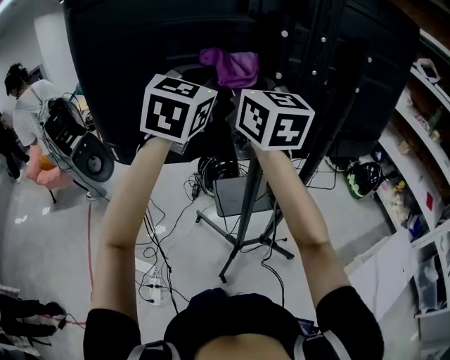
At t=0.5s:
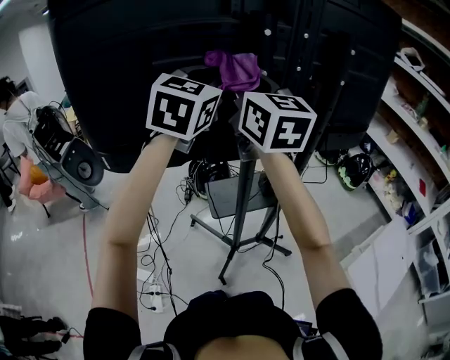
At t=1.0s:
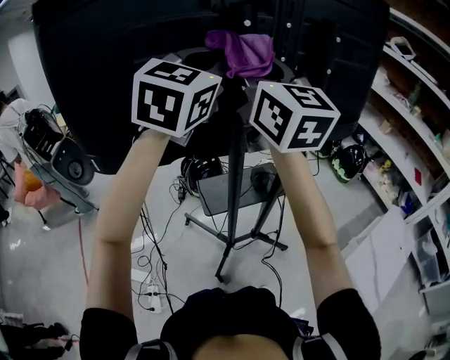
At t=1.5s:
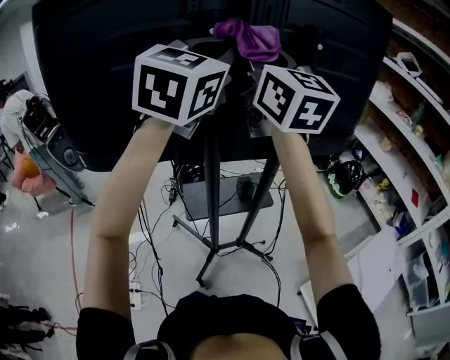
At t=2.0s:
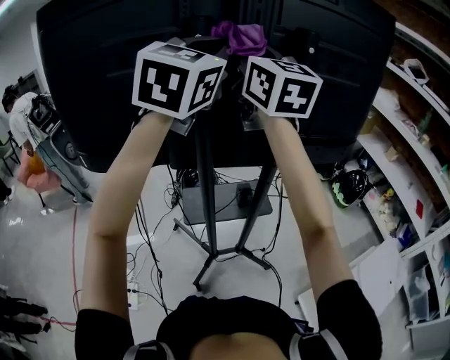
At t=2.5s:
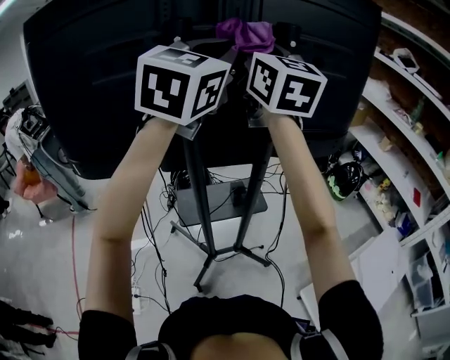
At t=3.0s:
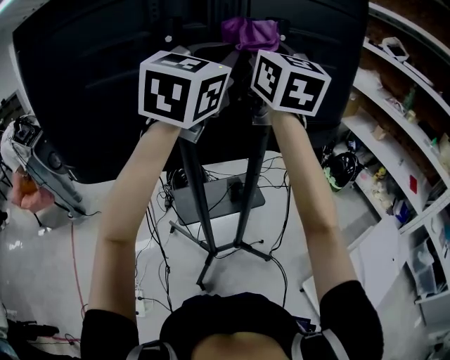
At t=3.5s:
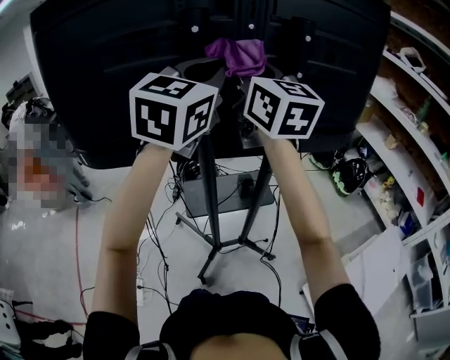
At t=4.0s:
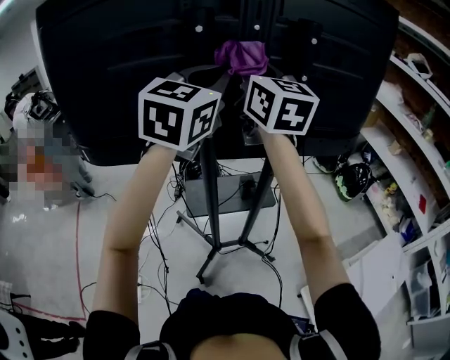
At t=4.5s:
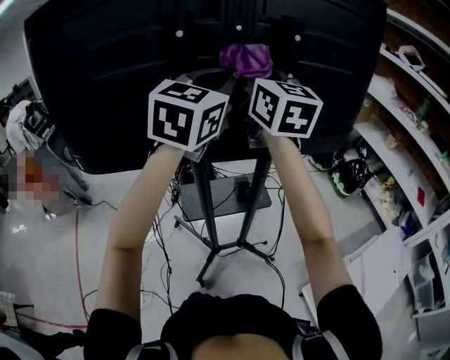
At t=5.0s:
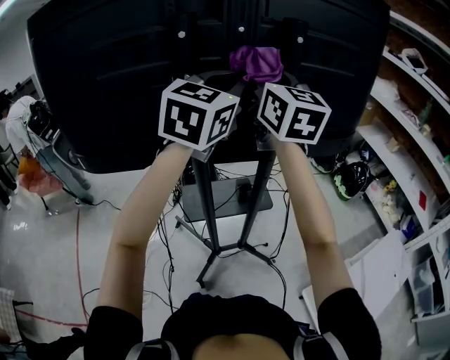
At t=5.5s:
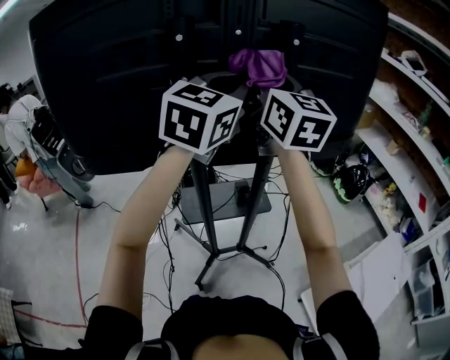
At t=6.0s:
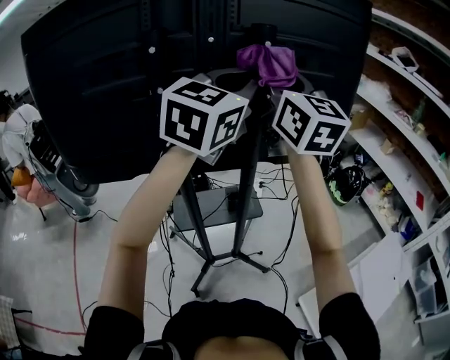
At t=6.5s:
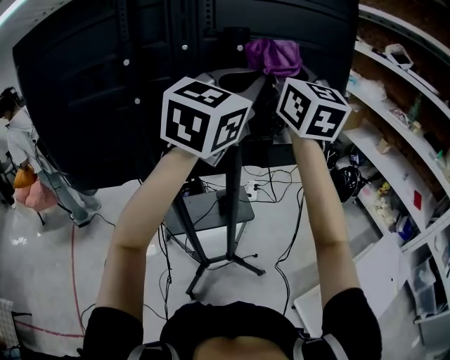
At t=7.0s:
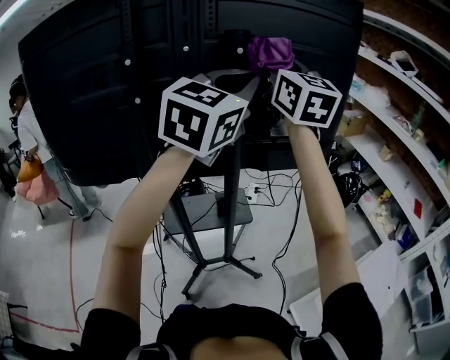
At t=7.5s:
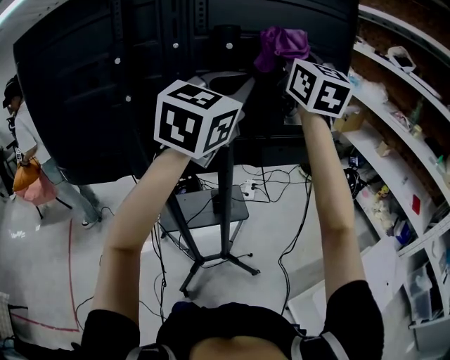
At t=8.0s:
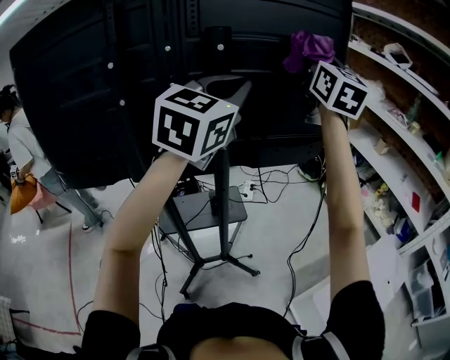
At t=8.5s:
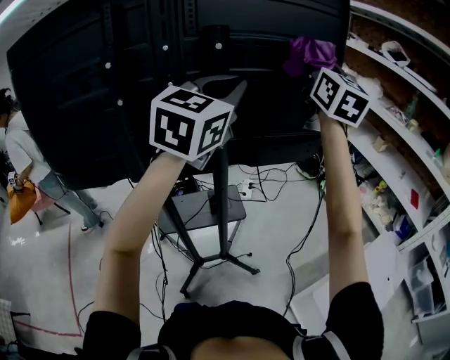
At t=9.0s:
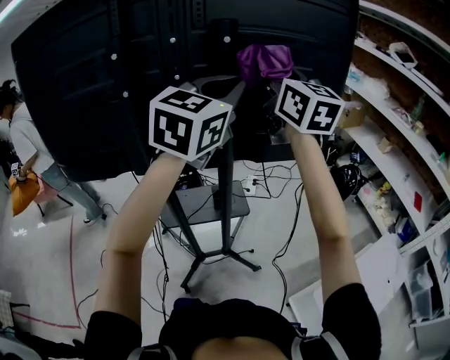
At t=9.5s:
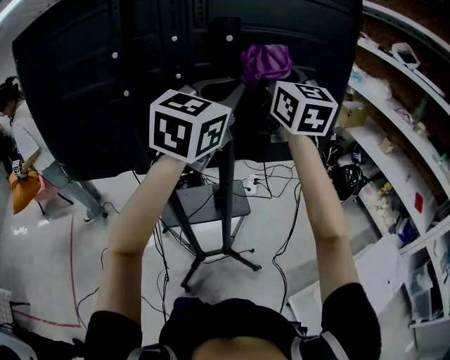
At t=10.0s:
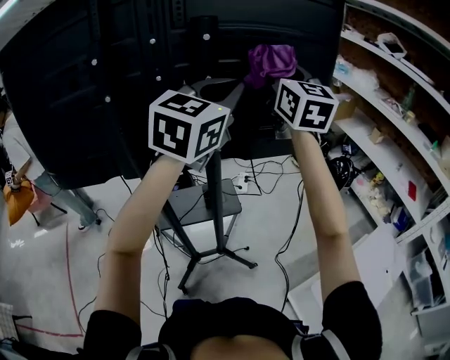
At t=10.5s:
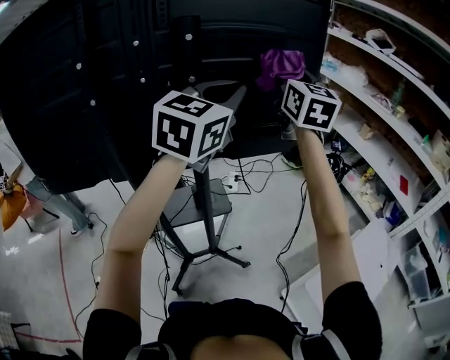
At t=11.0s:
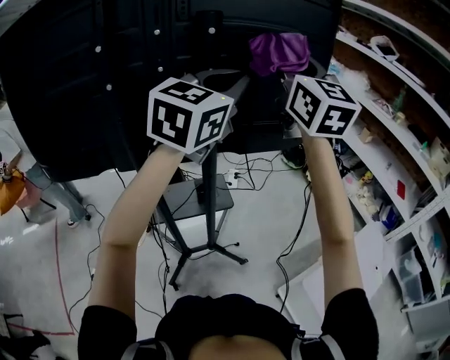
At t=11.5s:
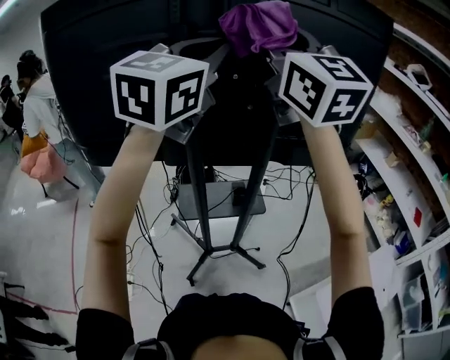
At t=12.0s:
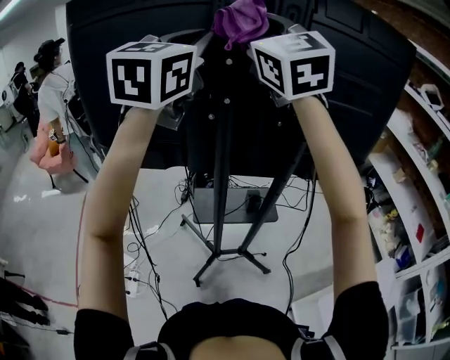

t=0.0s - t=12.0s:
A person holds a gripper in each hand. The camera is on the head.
t=0.0s - t=2.0s: Both grippers move to the right and upward, roughly 20 cm.
t=2.0s - t=4.0s: The grippers both shift downward by approximately 5 cm. The right gripper goes to the right and returns, about 10 cm each way.
t=4.0s - t=6.0s: Both grippers travel together to the right, roughly 15 cm.
t=6.0s - t=8.0s: The left gripper travels to the right by roughly 5 cm. Meanwhile the right gripper shifts some 25 cm to the right and forward.
t=8.0s - t=10.0s: The right gripper is displaced downward and to the left by approximately 10 cm.
t=10.0s - t=12.0s: The right gripper changes place by some 40 cm, and turns by roughly 30 degrees. Meanwhile the left gripper ends up approximately 35 cm from where it was, and turns by approximately 20 degrees.

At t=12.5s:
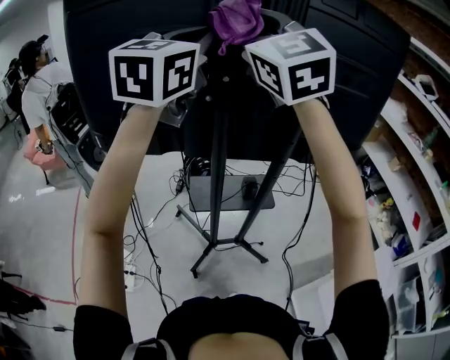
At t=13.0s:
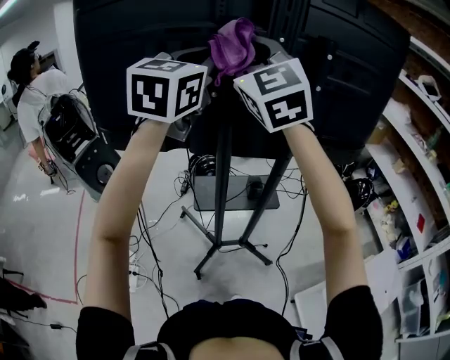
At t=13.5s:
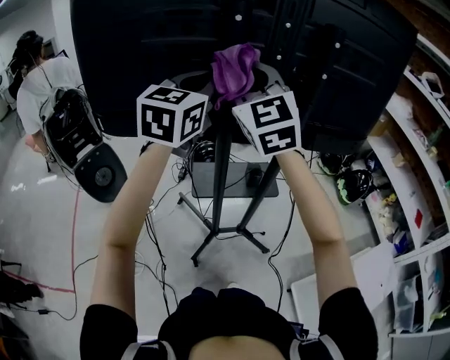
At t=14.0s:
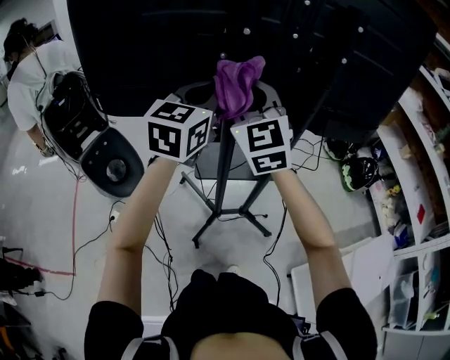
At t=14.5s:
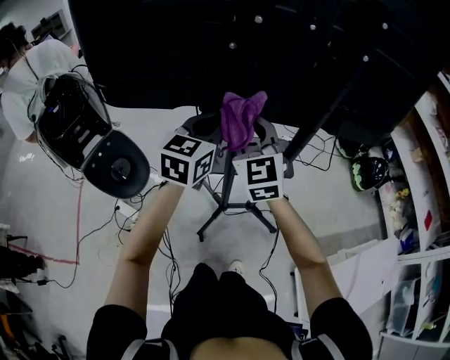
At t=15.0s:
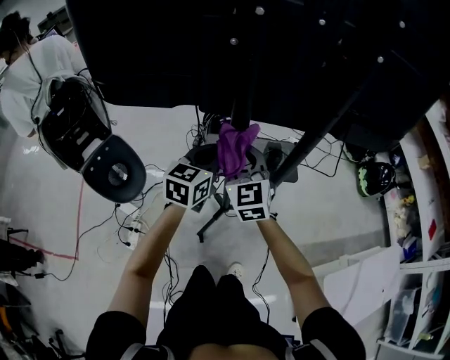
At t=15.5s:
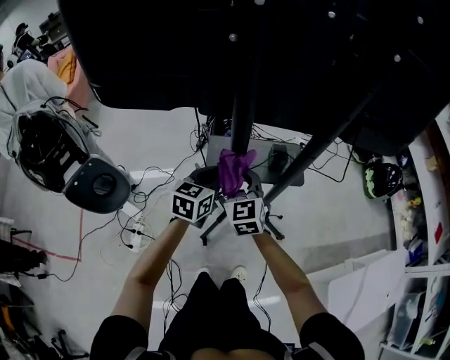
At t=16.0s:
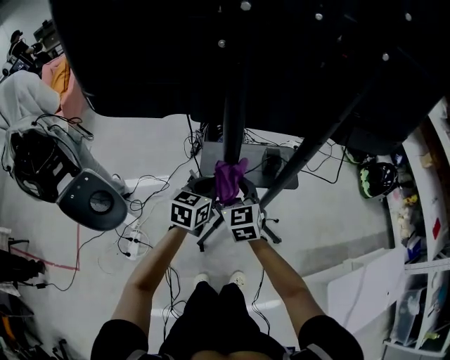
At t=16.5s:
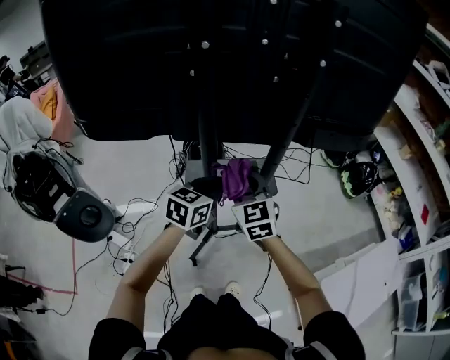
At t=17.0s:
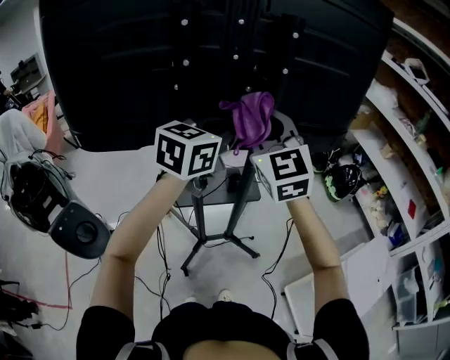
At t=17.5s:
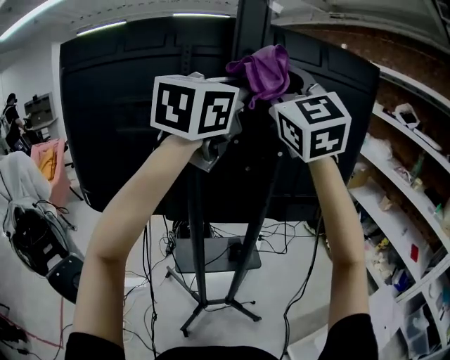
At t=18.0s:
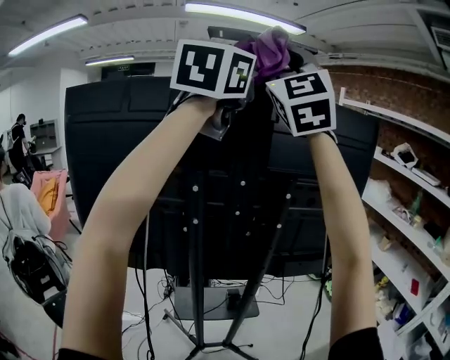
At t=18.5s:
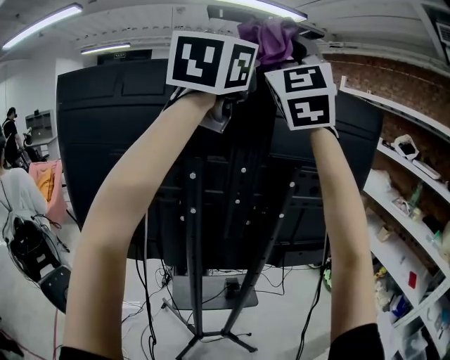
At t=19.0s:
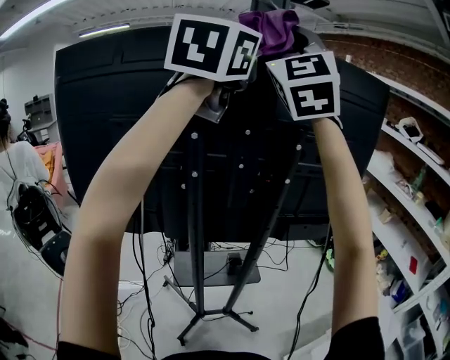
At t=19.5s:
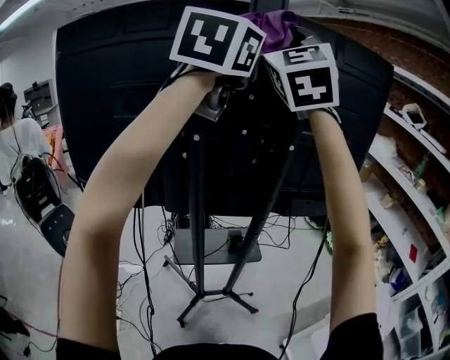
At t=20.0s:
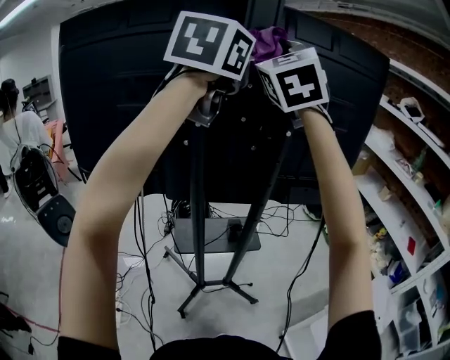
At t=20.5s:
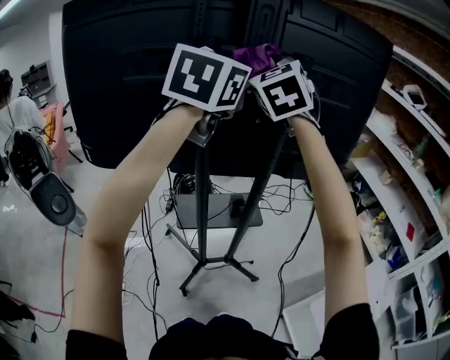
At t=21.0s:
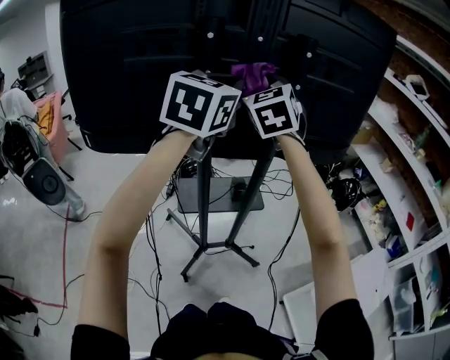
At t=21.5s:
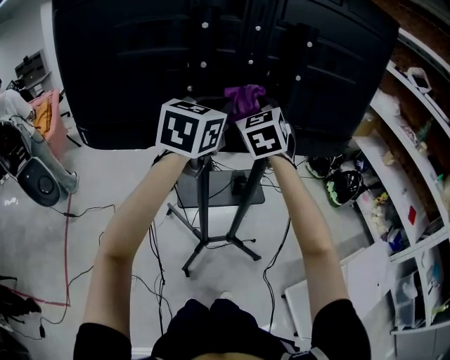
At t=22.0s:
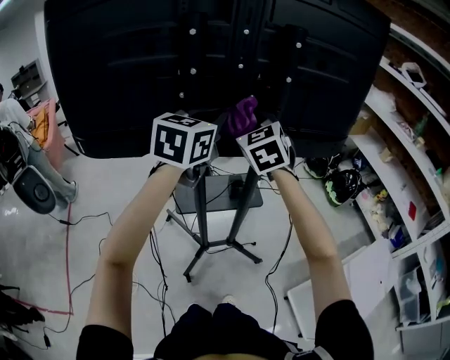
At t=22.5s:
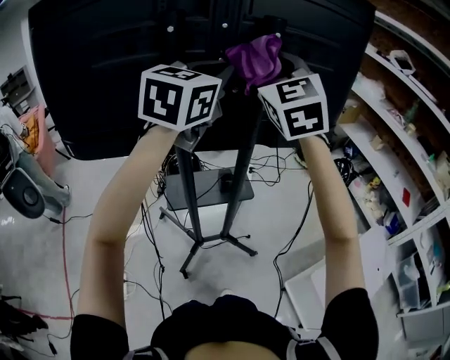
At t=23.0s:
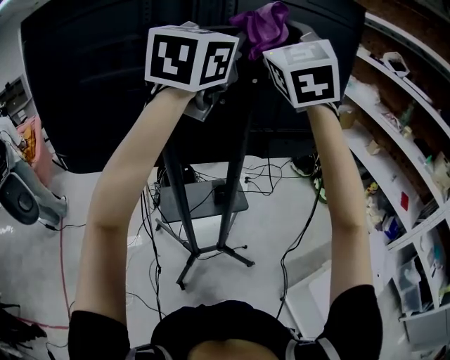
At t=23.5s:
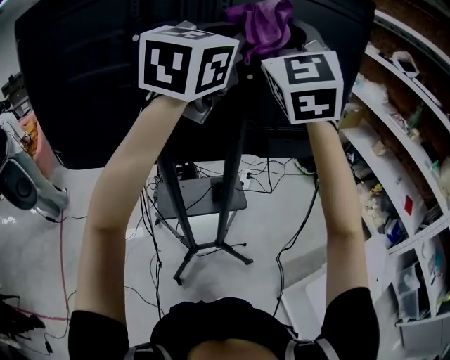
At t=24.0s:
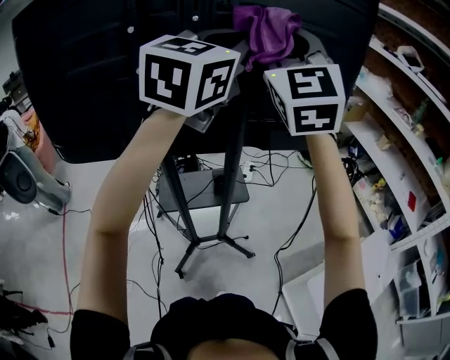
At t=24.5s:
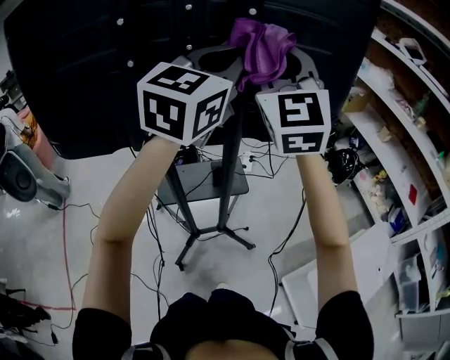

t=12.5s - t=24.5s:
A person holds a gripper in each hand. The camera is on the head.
t=12.5s - t=14.5s: Both grippers travel together downward, some 35 cm. The right gripper changes its angle by roughly 20 degrees. Meanwhile the left gripper changes its angle by roughly 20 degrees.
t=14.5s - t=16.5s: The right gripper moves downward and to the right, some 15 cm. Meanwhile the left gripper heads downward, to the right and backward, covering about 15 cm, and changes its angle by about 20 degrees.
t=16.5s - t=18.5s: Both grippers move upward, some 70 cm. The left gripper points its fingers some 40 degrees further upward, while the right gripper tips its fingers upward by roughly 50 degrees.
t=18.5s - t=20.5s: Both grippers travel together downward, about 30 cm. The right gripper tips its fingers downward by roughly 40 degrees. Meanwhile the left gripper swivels roughly 30 degrees.
t=20.5s - t=22.5s: The right gripper goes about 10 cm to the right, and travels downward and back again, approximately 20 cm each way. Meanwhile the left gripper goes roughly 5 cm downward.
t=22.5s - t=24.5s: The grippers both shift to the right by approximately 5 cm. The left gripper moves some 10 cm upward and comes back. The right gripper travels upward and back again, approximately 10 cm each way.

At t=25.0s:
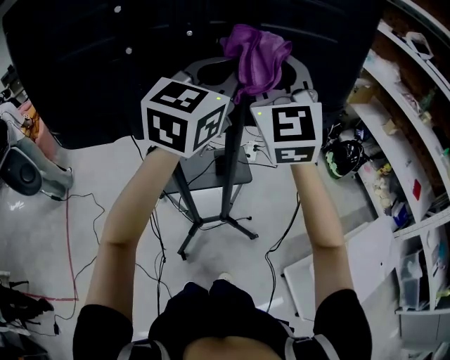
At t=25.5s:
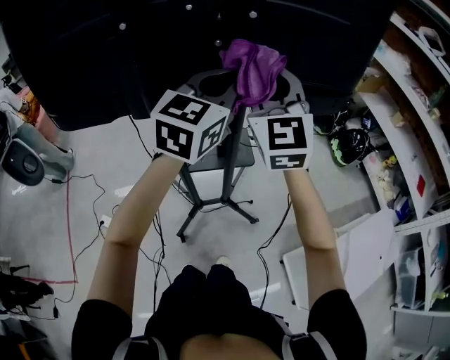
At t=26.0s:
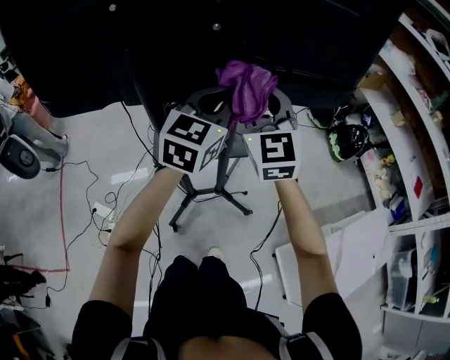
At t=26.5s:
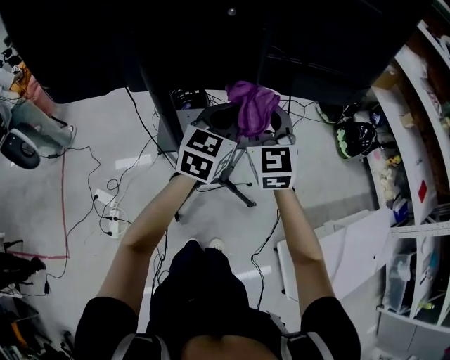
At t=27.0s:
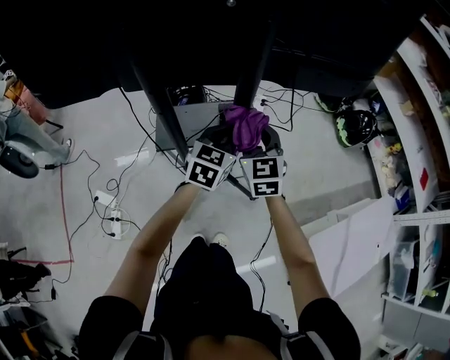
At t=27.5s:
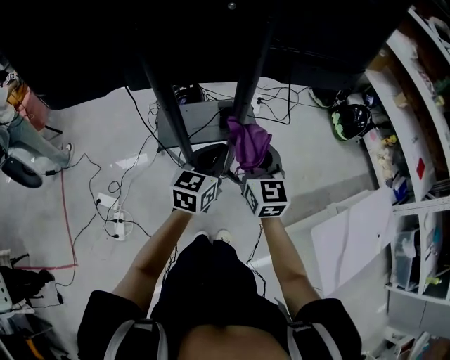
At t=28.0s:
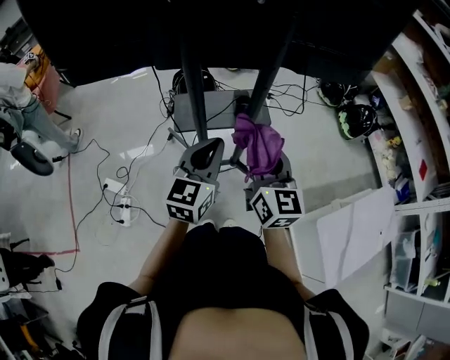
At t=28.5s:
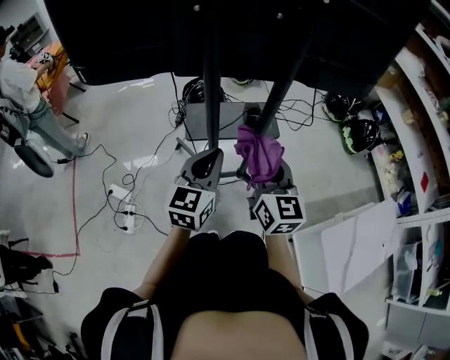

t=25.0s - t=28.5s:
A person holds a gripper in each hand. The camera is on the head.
t=25.0s - t=27.0s: Both grippers move downward, about 40 cm. The right gripper changes its angle by some 30 degrees. Meanwhile the left gripper changes its angle by some 30 degrees.
t=27.0s - t=28.5s: The right gripper shifts approximately 20 cm backward, and turns by some 20 degrees. Meanwhile the left gripper travels backward and to the left by roughly 25 cm.
